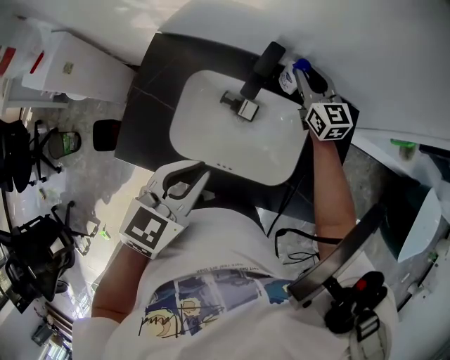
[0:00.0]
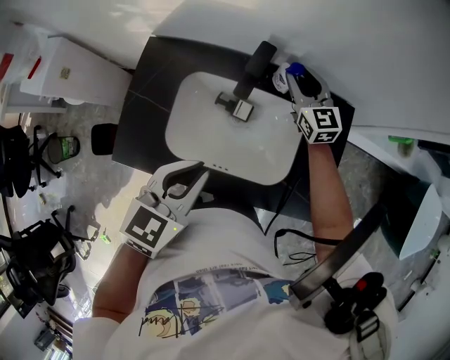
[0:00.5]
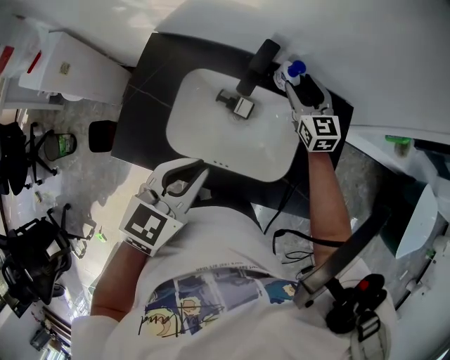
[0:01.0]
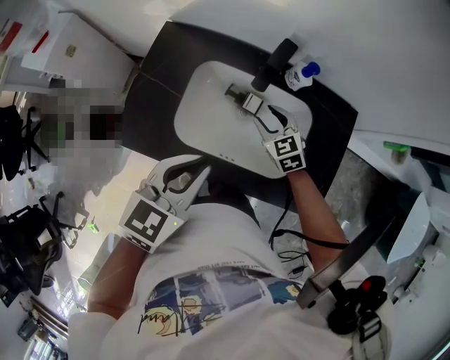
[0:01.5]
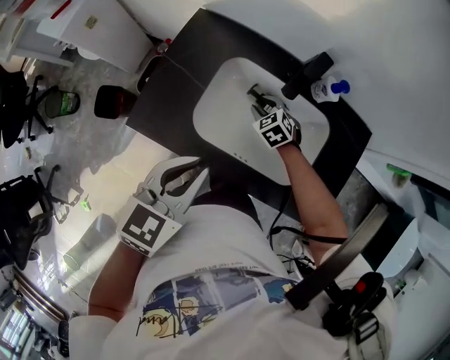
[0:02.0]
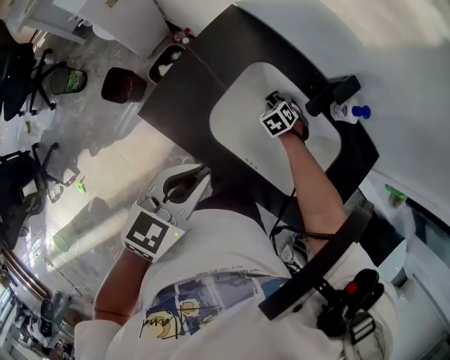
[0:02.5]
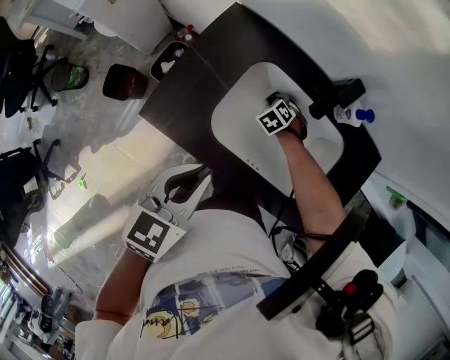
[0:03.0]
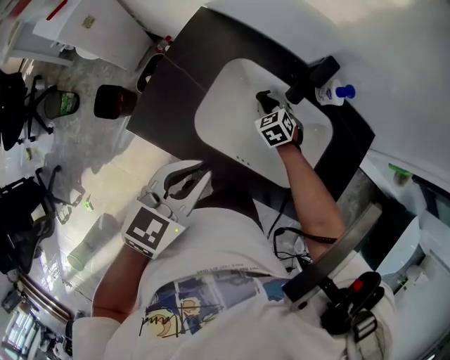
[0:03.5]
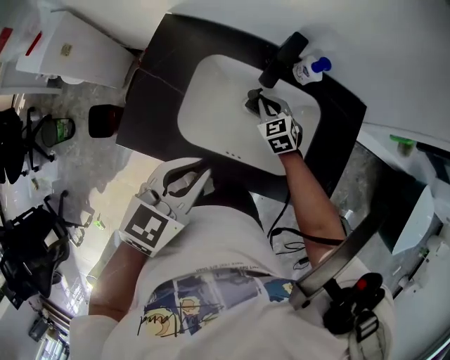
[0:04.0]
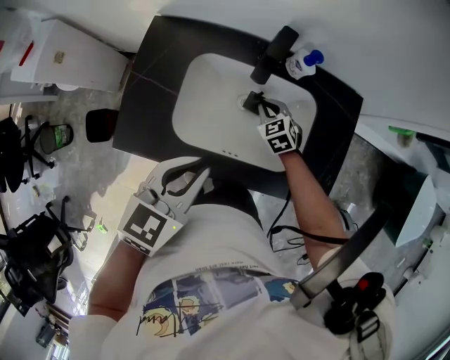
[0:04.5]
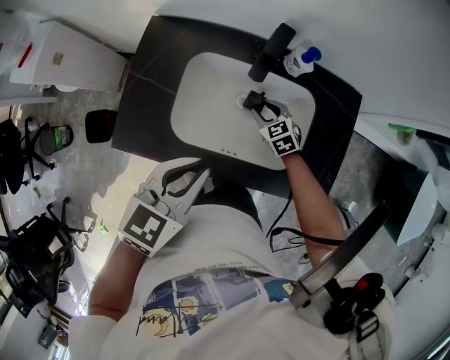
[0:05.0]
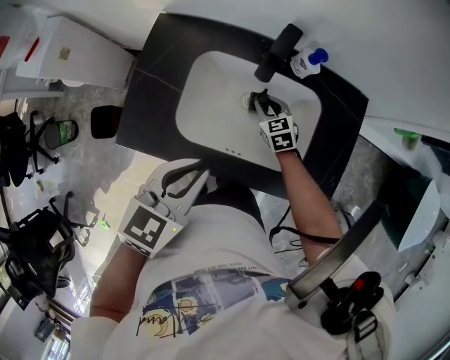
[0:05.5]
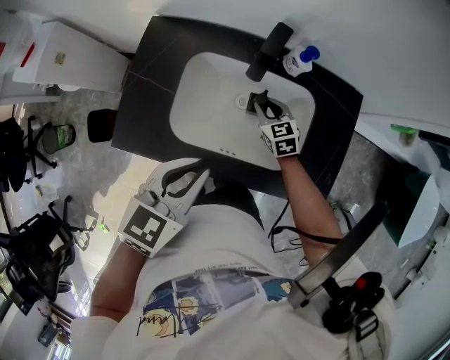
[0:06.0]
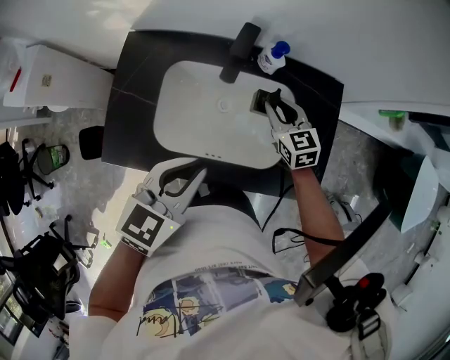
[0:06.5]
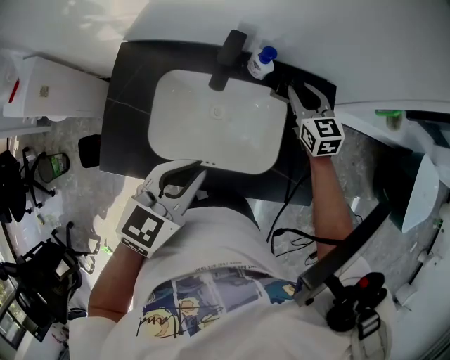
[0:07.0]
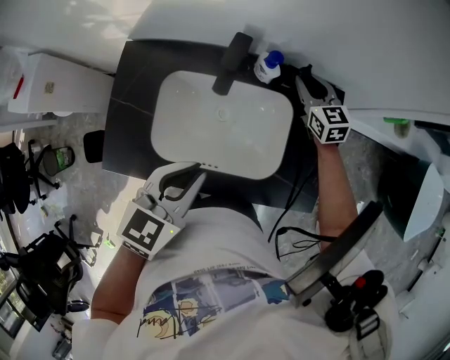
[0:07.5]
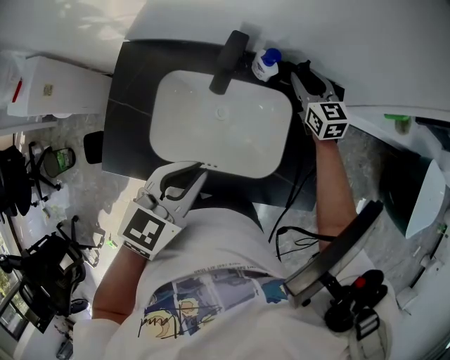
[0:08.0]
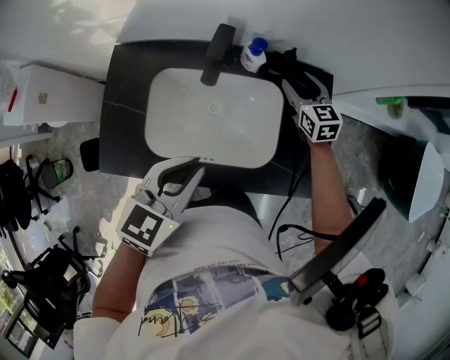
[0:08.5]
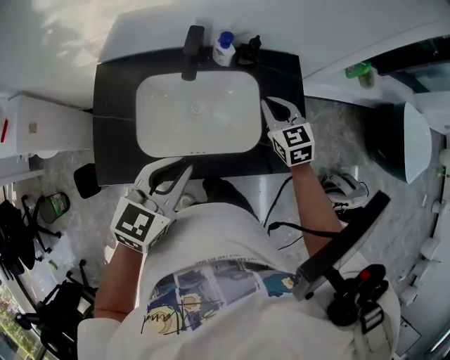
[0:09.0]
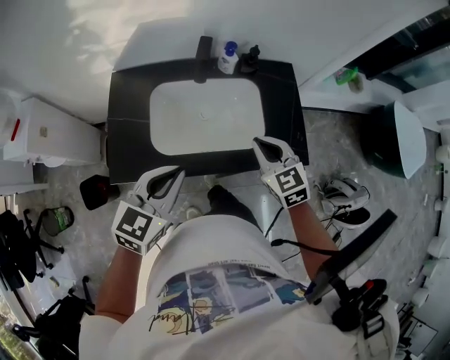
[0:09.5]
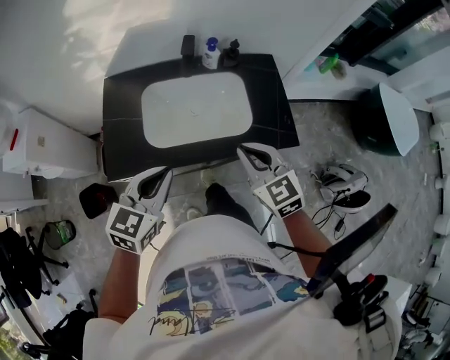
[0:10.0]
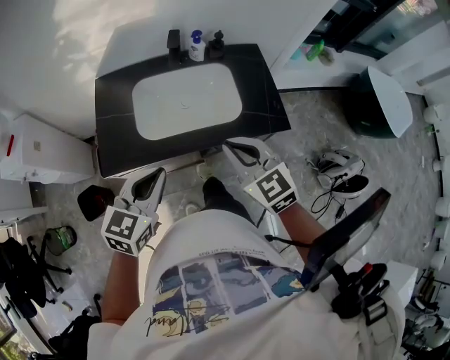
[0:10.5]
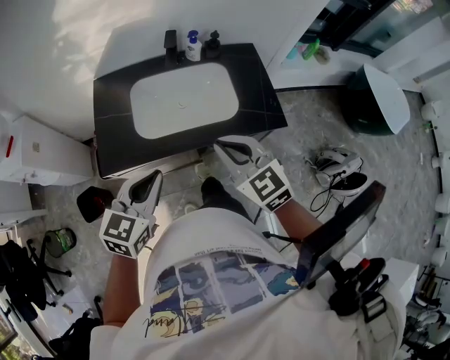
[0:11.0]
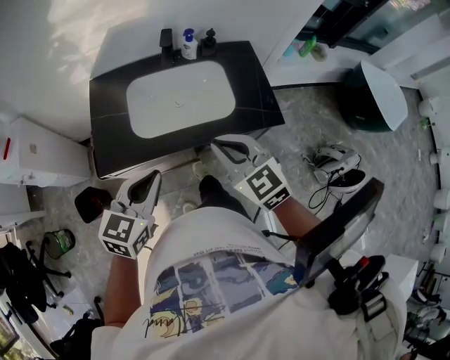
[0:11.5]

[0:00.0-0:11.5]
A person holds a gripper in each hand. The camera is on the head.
0:00.0 to 0:02.0: The left gripper heads to the left, covering approximately 5 cm; the right gripper is displaced downward, to the left and backward by about 30 cm, angles its fingers downward, by approximately 50 degrees, and opens and closes again.
0:02.0 to 0:04.0: The right gripper travels to the right by about 5 cm, reaches approximately 10 cm downward, then returns, and closes its fingers.
0:04.0 to 0:06.0: The grippers move only a little.
0:06.0 to 0:07.5: The right gripper heads forward, to the right and upward, covering roughly 25 cm, while the left gripper shifts by approximately 5 cm.
0:07.5 to 0:09.5: The left gripper travels backward and to the left by roughly 15 cm; the right gripper moves backward, some 35 cm, and opens, then closes again.
0:09.5 to 0:11.5: The left gripper heads backward, covering approximately 10 cm, while the right gripper goes about 15 cm backward, upward and to the left.

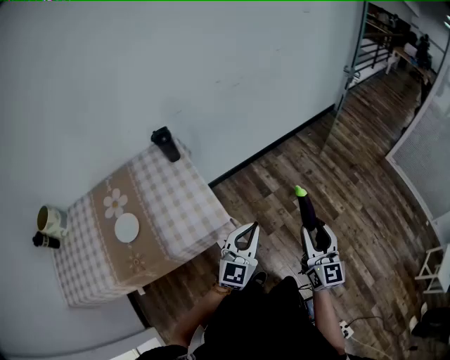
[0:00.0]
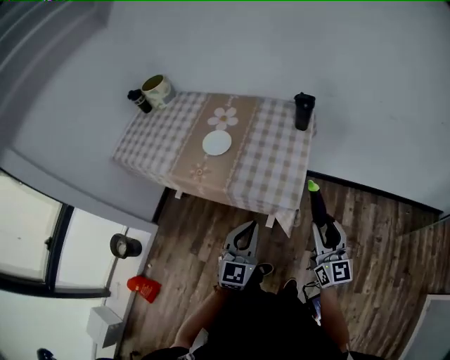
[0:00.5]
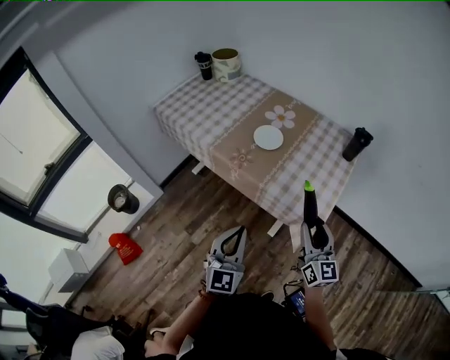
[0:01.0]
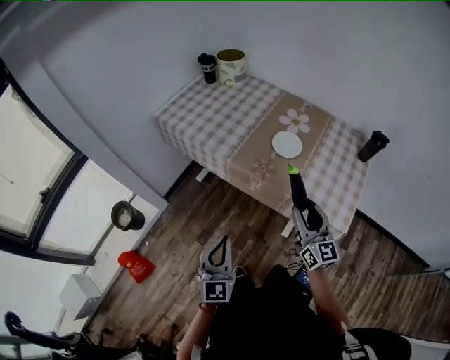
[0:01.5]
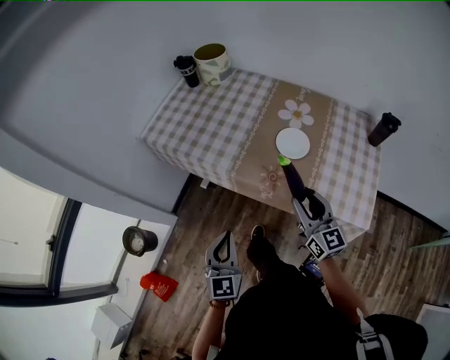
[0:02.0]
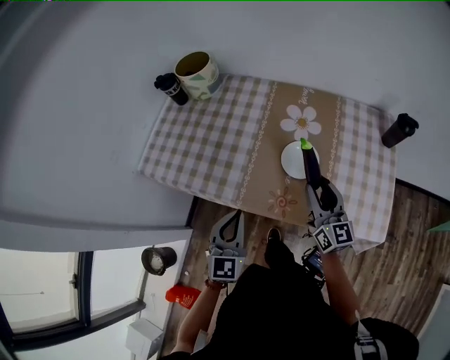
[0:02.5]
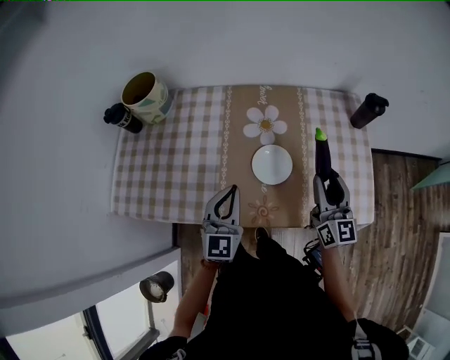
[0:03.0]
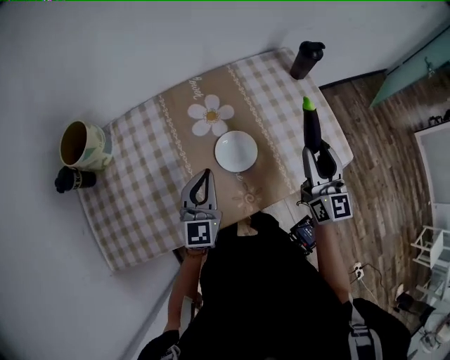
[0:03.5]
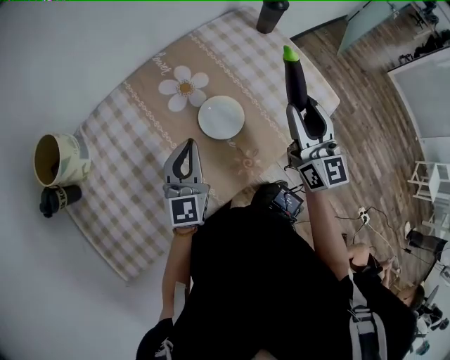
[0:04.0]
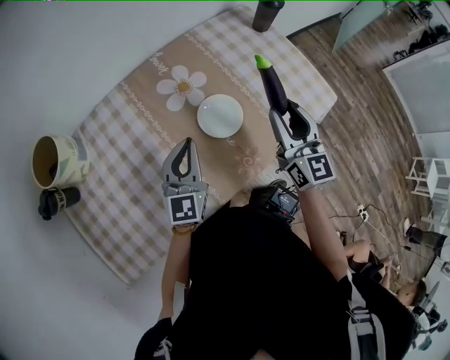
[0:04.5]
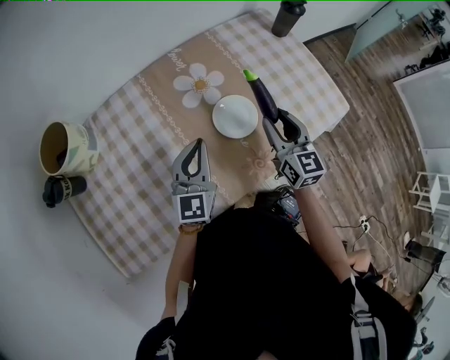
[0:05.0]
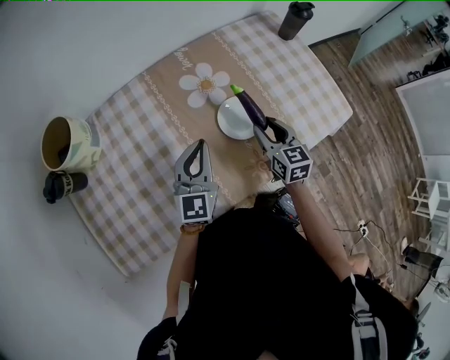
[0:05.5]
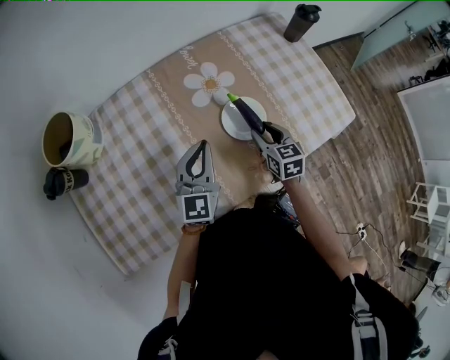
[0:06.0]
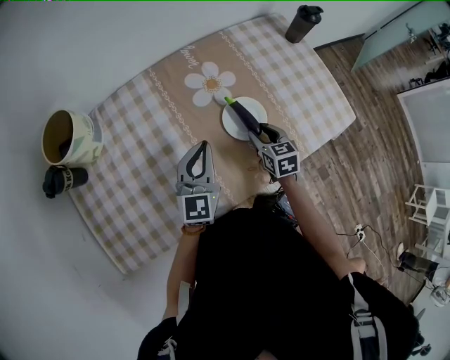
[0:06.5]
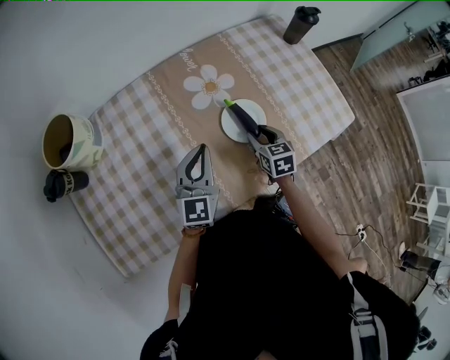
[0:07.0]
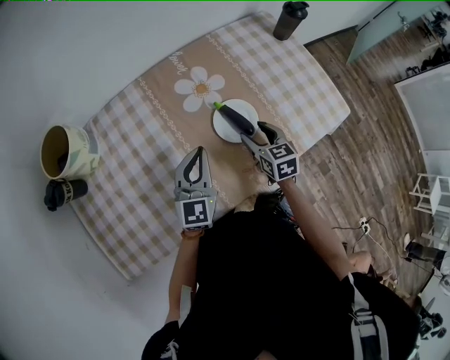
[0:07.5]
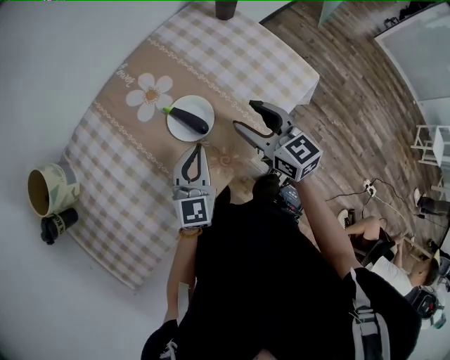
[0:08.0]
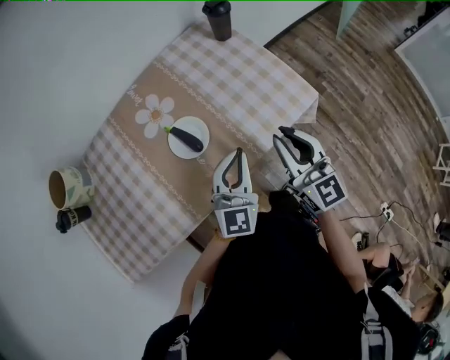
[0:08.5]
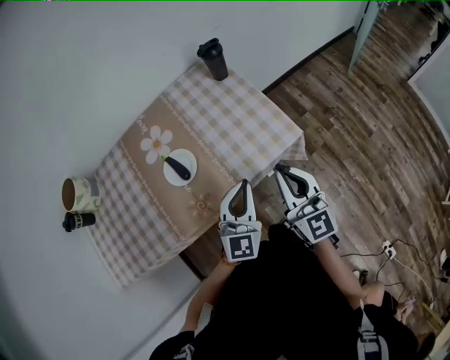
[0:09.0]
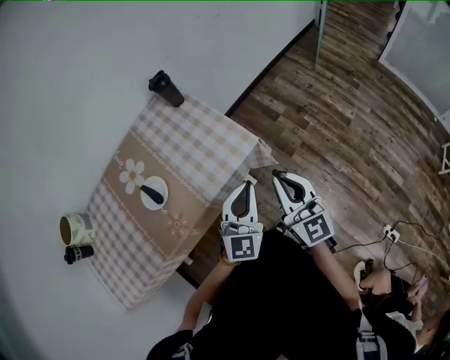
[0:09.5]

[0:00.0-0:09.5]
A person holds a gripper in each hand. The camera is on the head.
0:00.0 to 0:02.0: The two grippers travel together, approximately 60 cm. The right gripper changes its angle by about 60 degrees; the left gripper rotates some 70 degrees.
0:02.0 to 0:04.0: The right gripper shifts by some 20 cm, and swivels approximately 70 degrees; the left gripper moves roughly 40 cm, and swivels some 60 degrees.
0:04.0 to 0:05.5: The right gripper is displaced downward and to the left by roughly 20 cm, and tilts its fingers some 30 degrees downward.
0:07.5 to 0:09.5: Both grippers are carried to the right, roughly 50 cm. The left gripper swivels some 20 degrees; the right gripper points its fingers some 40 degrees further upward, and closes up.

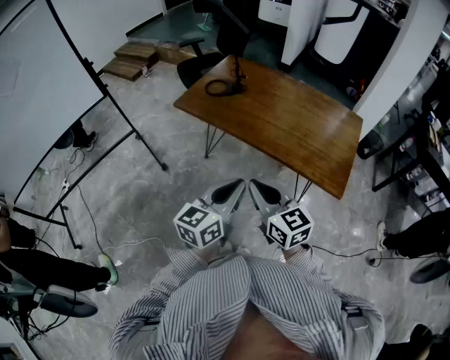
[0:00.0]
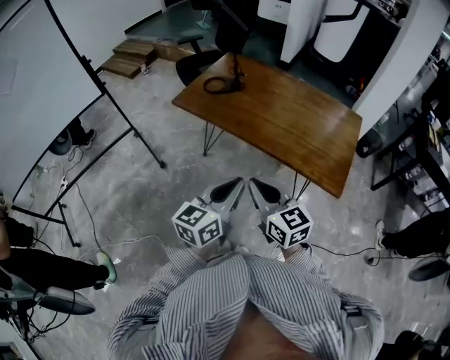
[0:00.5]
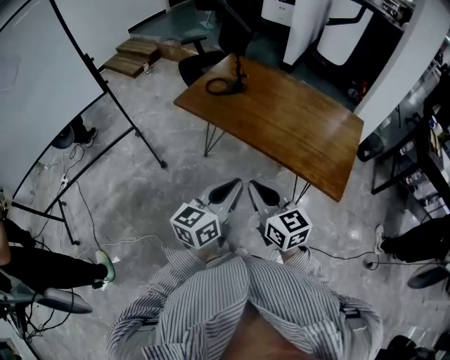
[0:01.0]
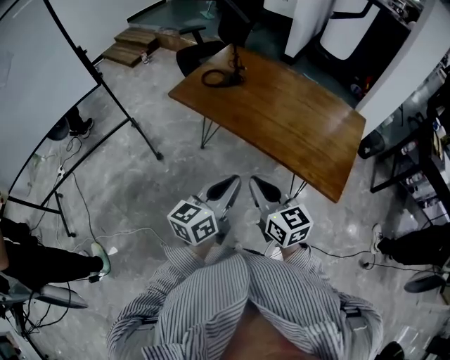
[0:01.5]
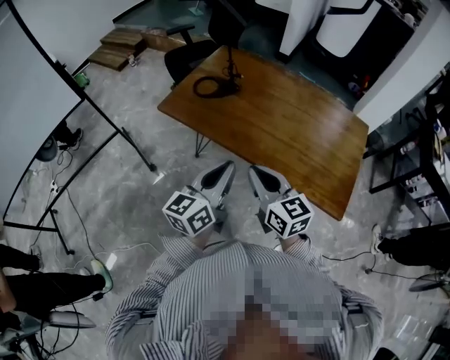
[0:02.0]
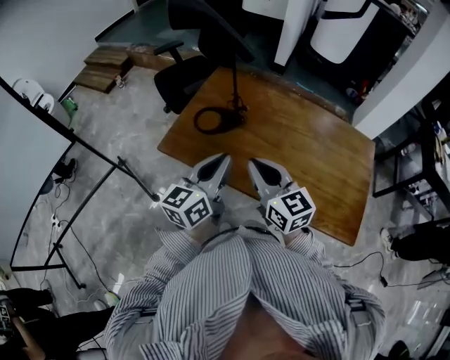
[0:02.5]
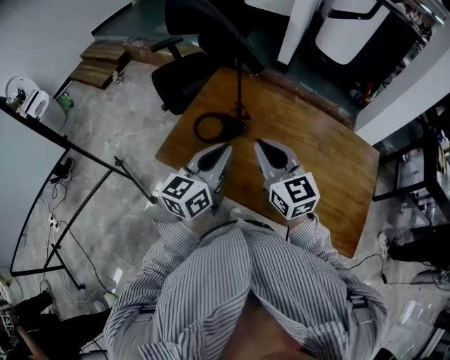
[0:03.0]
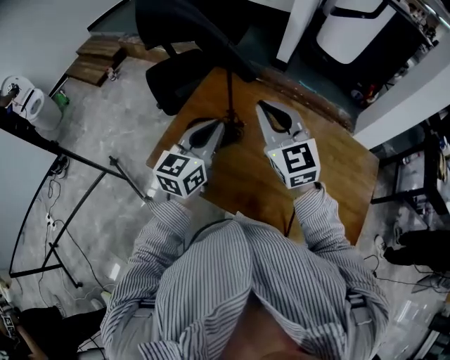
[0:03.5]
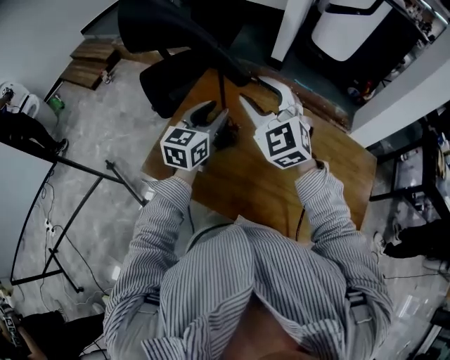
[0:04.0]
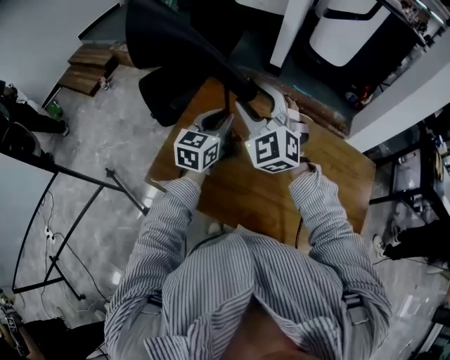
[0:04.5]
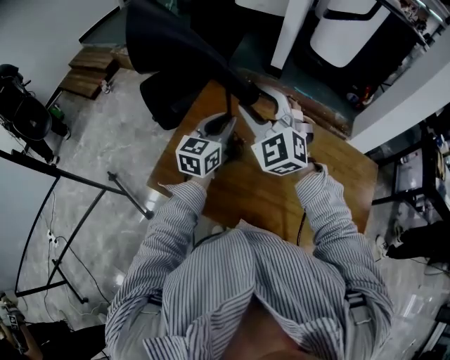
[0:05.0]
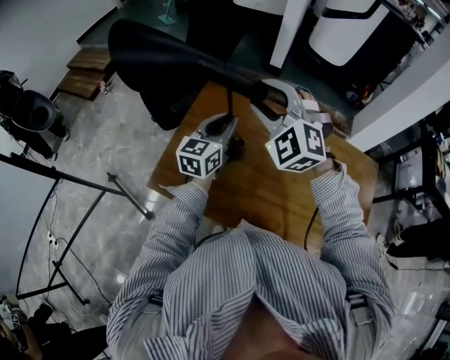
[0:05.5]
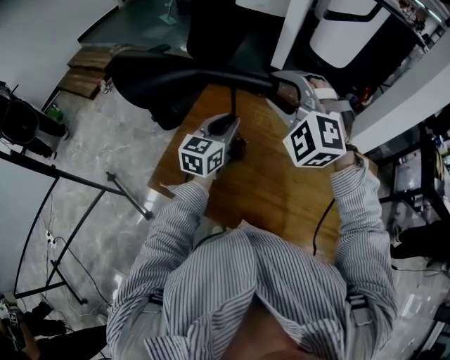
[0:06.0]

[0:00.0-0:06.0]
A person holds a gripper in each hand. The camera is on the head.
0:00.0 to 0:02.0: The grippers both shift forward by some 20 cm.
0:02.0 to 0:04.0: The two grippers travel together, forward, roughly 50 cm. The right gripper rolls counterclockwise, seen from behind, by approximately 50 degrees, and opens, while the left gripper rotates some 20 degrees, and opens.
0:04.0 to 0:06.0: The left gripper closes up, while the right gripper turns by approximately 40 degrees.
